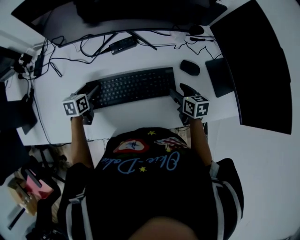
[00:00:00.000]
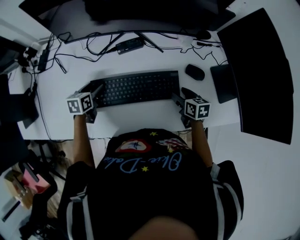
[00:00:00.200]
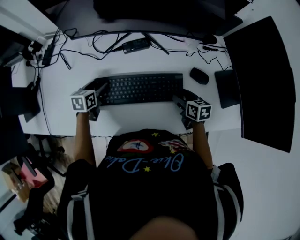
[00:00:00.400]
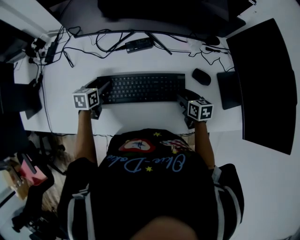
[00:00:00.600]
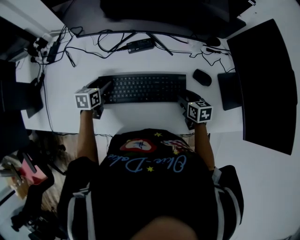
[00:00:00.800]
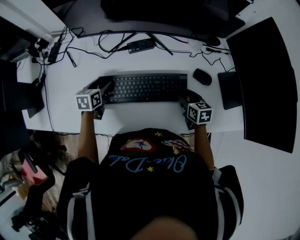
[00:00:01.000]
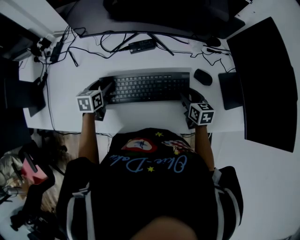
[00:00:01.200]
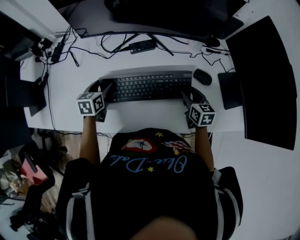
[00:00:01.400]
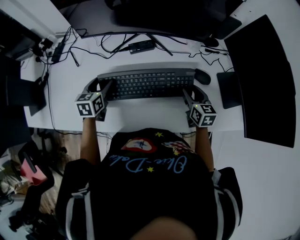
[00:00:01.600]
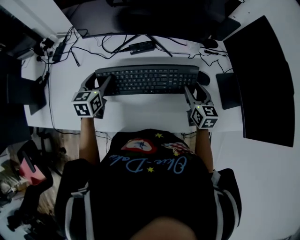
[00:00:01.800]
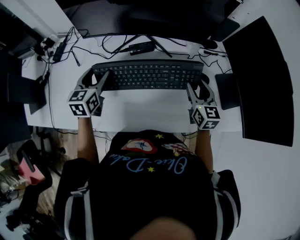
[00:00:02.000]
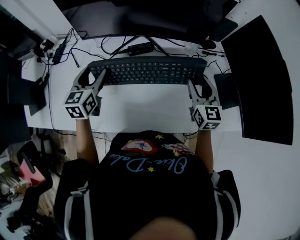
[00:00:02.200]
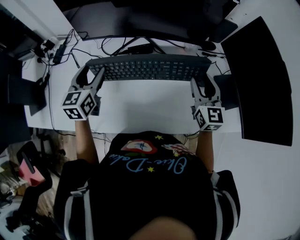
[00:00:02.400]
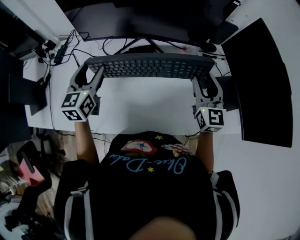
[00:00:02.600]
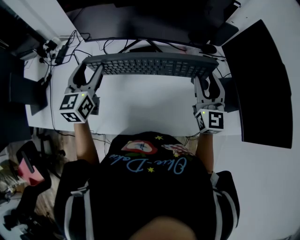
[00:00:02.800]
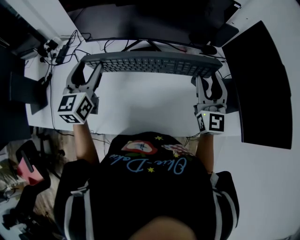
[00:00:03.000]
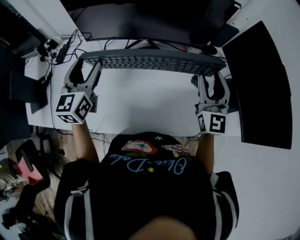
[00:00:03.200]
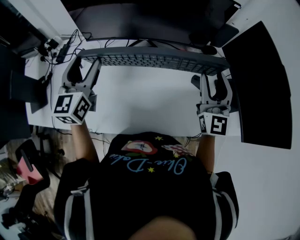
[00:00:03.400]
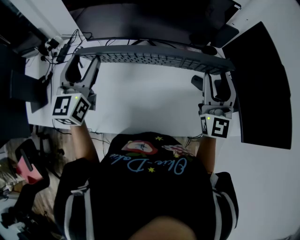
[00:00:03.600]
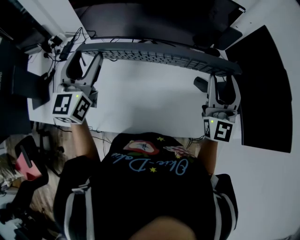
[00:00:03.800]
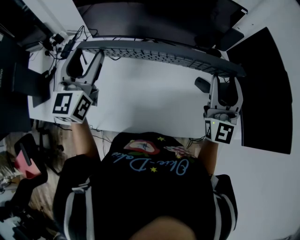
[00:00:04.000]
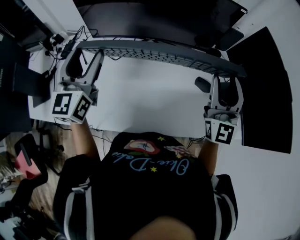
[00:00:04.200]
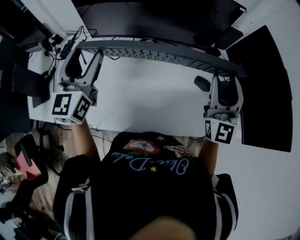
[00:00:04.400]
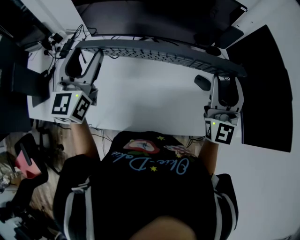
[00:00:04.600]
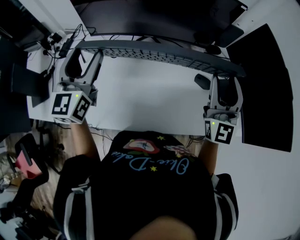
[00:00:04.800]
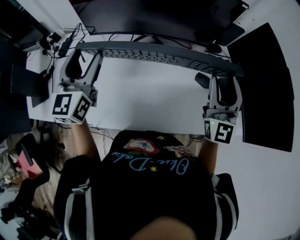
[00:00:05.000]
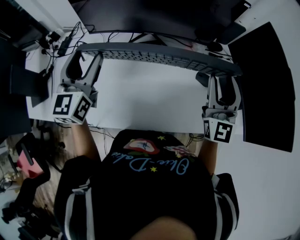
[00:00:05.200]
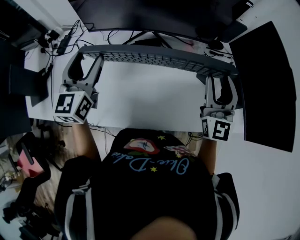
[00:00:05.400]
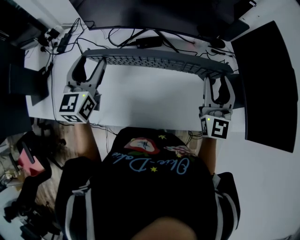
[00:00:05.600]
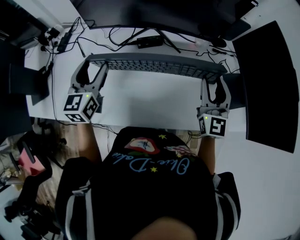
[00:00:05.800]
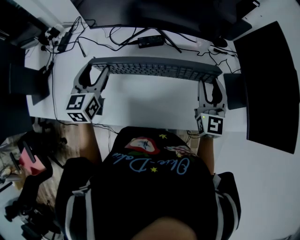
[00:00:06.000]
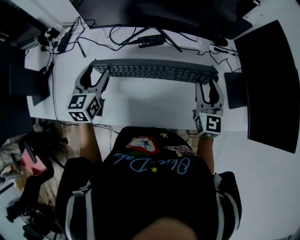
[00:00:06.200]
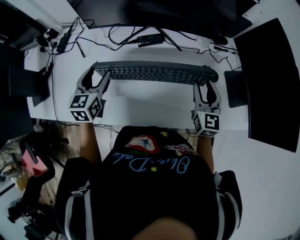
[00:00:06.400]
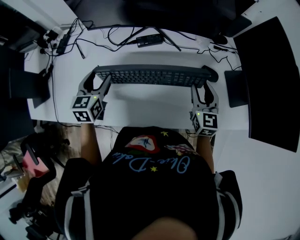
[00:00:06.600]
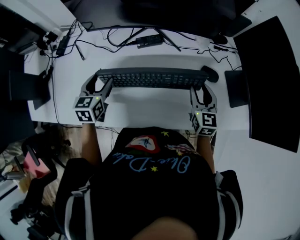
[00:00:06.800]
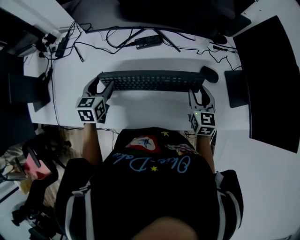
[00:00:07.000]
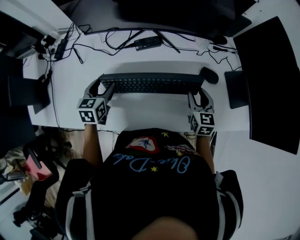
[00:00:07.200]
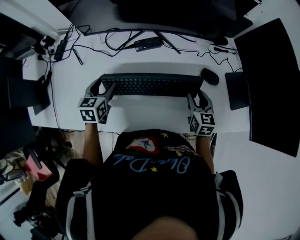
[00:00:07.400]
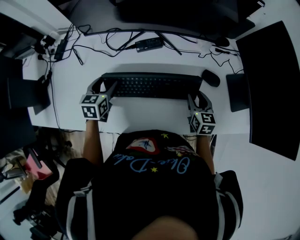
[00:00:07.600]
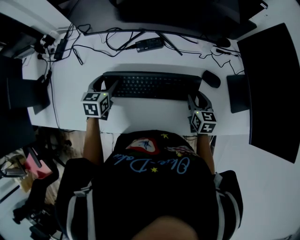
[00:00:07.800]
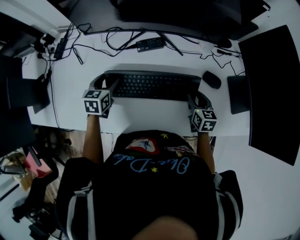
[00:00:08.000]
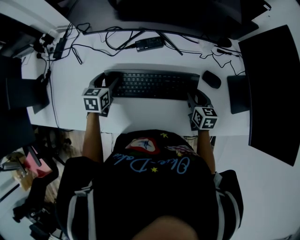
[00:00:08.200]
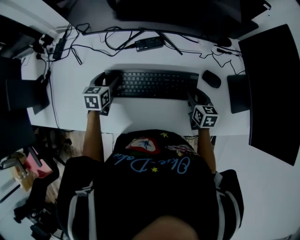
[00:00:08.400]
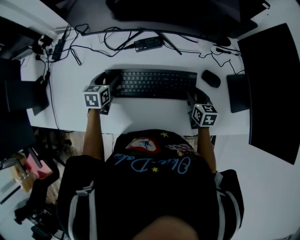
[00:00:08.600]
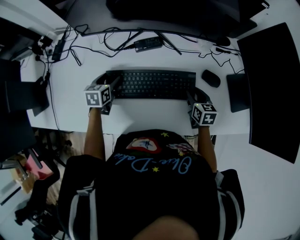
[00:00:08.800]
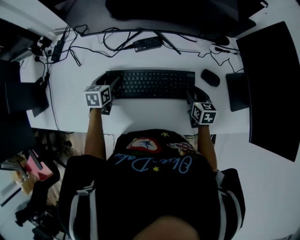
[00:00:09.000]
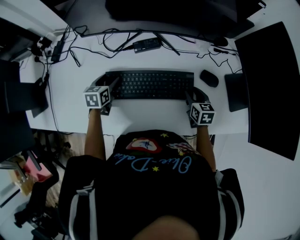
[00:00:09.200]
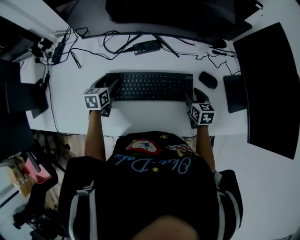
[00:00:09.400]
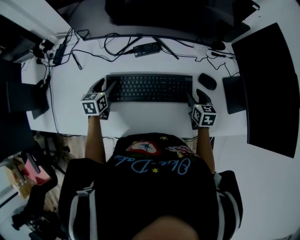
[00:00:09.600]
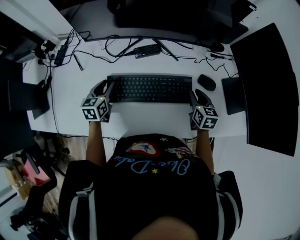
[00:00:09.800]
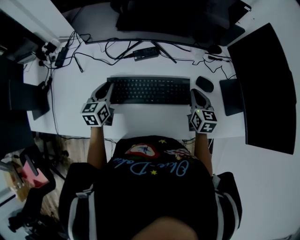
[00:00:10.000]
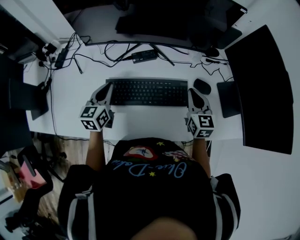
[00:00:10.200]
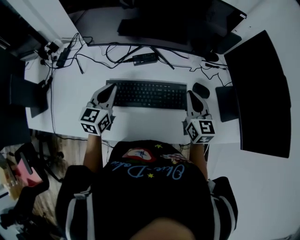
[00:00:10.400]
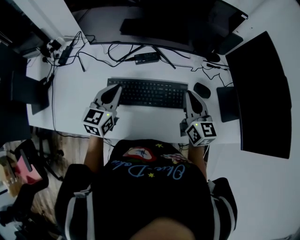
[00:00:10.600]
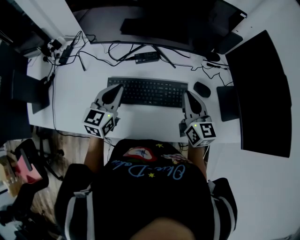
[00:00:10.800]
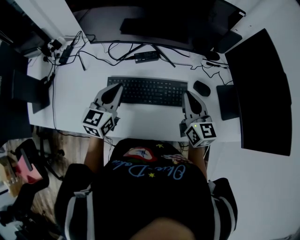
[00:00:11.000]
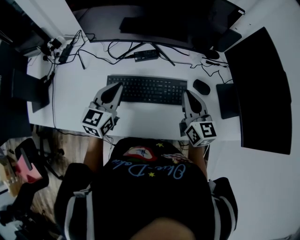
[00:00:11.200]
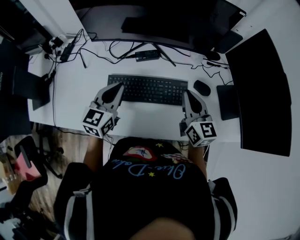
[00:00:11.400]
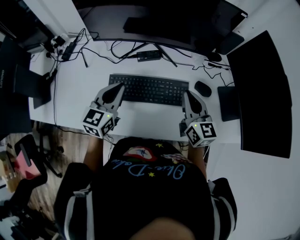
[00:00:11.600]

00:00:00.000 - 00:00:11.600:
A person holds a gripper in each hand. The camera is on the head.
00:00:00.000 - 00:00:01.400: The grippers make only small movements.
00:00:01.400 - 00:00:02.800: Both grippers travel together upward, about 20 cm. The left gripper rotates about 30 degrees. Meanwhile the right gripper tips its fingers upward by roughly 30 degrees.
00:00:02.800 - 00:00:04.400: The grippers both shift upward by roughly 10 cm.
00:00:04.400 - 00:00:05.800: Both grippers move downward, roughly 10 cm.
00:00:05.800 - 00:00:07.200: The grippers both shift downward by approximately 15 cm. The left gripper rotates about 20 degrees, while the right gripper changes its angle by approximately 30 degrees.
00:00:07.200 - 00:00:08.800: The right gripper is displaced downward by some 10 cm, while the left gripper is displaced downward and forward by some 10 cm.
00:00:08.800 - 00:00:10.200: The two grippers go approximately 15 cm upward. The left gripper changes its angle by some 30 degrees, and closes, while the right gripper swivels approximately 30 degrees, and closes up.
00:00:10.200 - 00:00:11.600: The right gripper moves upward, some 5 cm; the left gripper is displaced upward and to the right by some 10 cm.

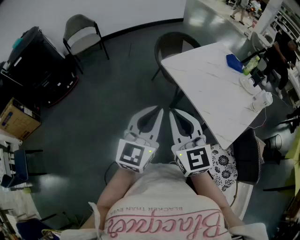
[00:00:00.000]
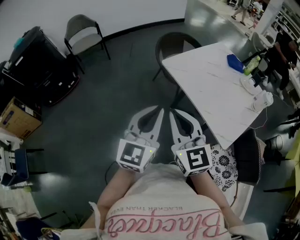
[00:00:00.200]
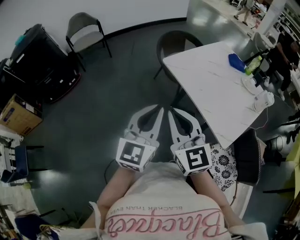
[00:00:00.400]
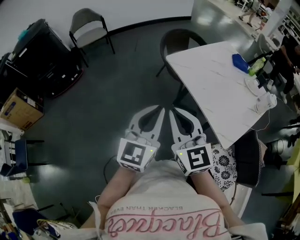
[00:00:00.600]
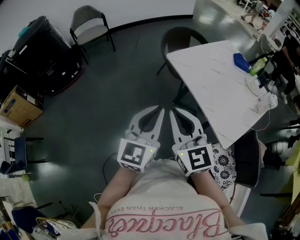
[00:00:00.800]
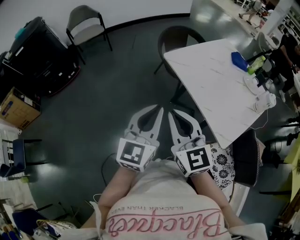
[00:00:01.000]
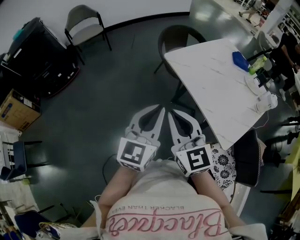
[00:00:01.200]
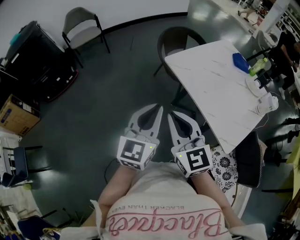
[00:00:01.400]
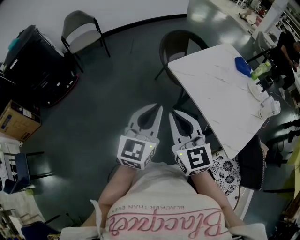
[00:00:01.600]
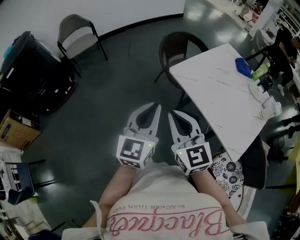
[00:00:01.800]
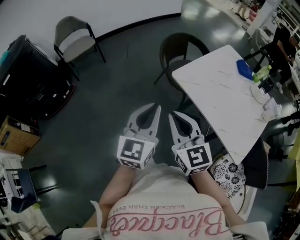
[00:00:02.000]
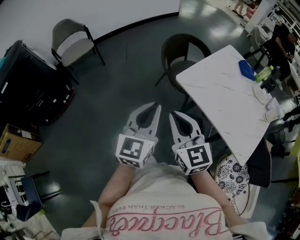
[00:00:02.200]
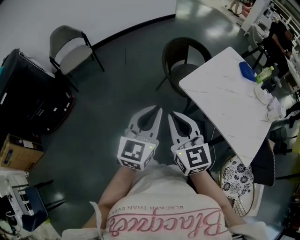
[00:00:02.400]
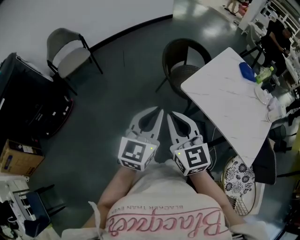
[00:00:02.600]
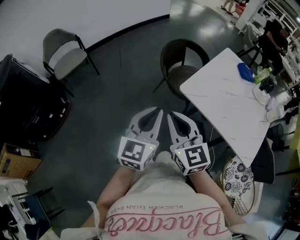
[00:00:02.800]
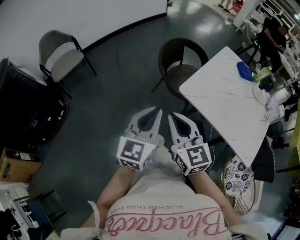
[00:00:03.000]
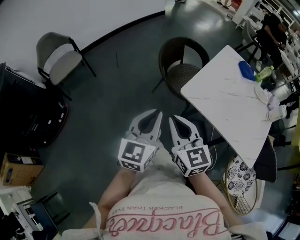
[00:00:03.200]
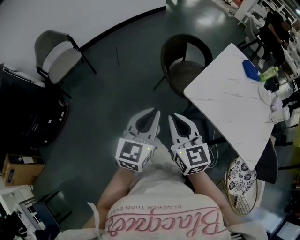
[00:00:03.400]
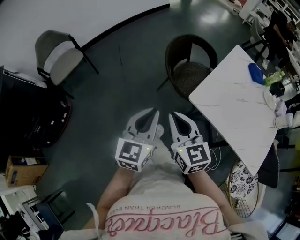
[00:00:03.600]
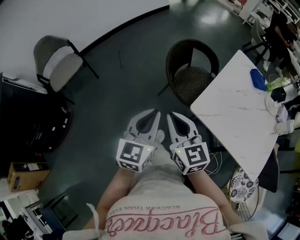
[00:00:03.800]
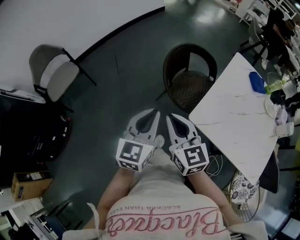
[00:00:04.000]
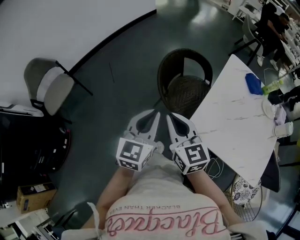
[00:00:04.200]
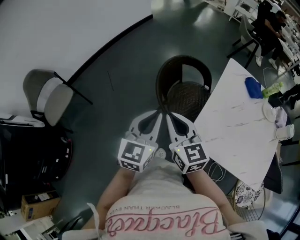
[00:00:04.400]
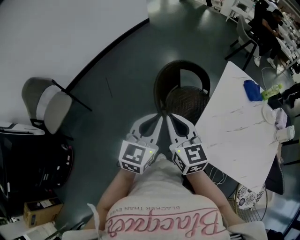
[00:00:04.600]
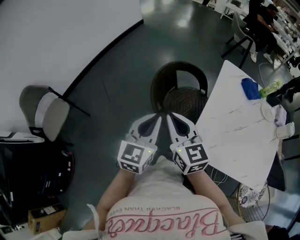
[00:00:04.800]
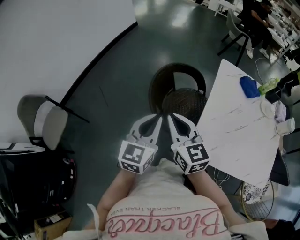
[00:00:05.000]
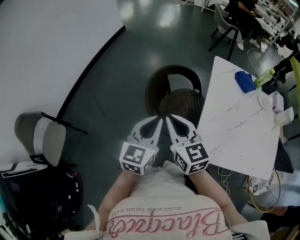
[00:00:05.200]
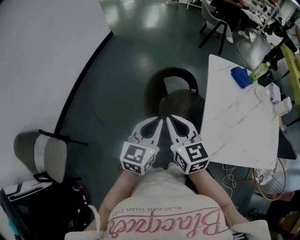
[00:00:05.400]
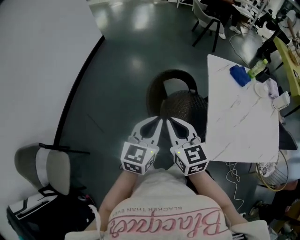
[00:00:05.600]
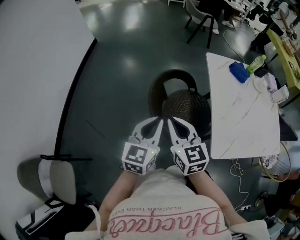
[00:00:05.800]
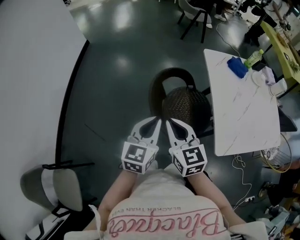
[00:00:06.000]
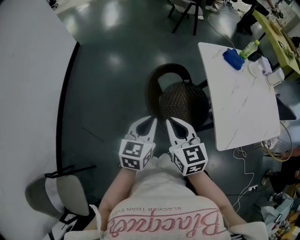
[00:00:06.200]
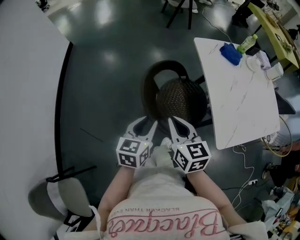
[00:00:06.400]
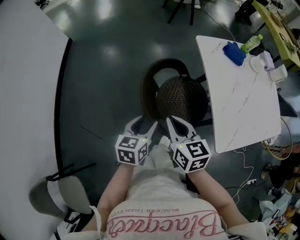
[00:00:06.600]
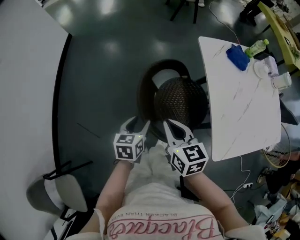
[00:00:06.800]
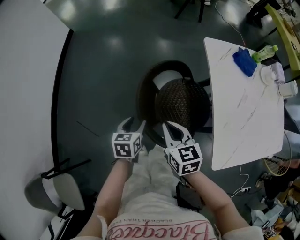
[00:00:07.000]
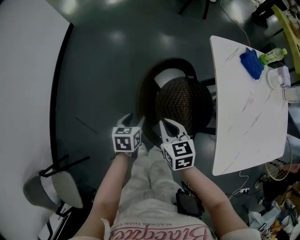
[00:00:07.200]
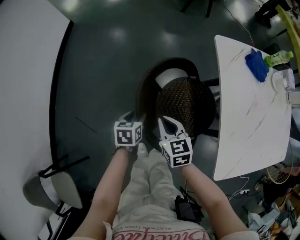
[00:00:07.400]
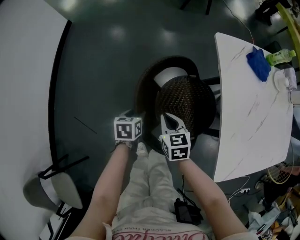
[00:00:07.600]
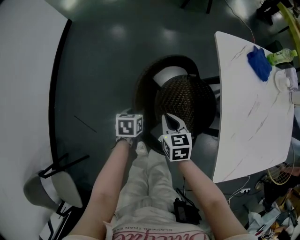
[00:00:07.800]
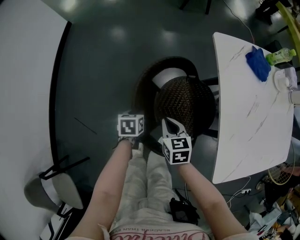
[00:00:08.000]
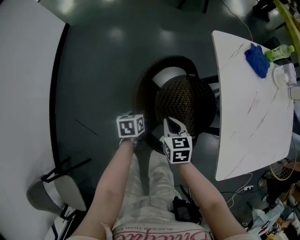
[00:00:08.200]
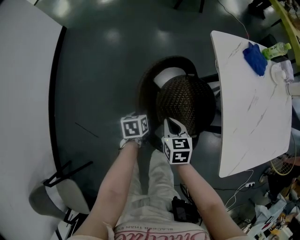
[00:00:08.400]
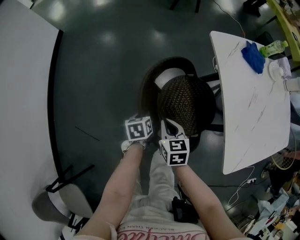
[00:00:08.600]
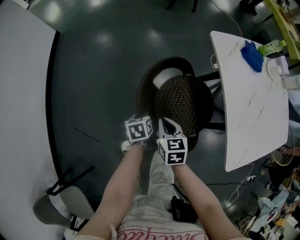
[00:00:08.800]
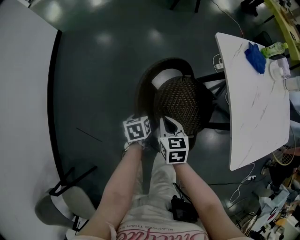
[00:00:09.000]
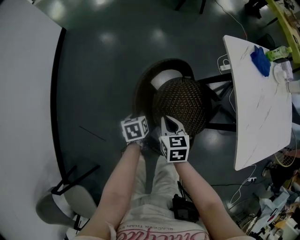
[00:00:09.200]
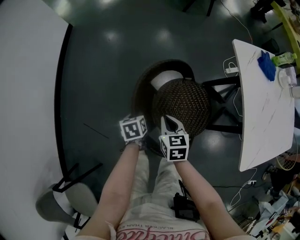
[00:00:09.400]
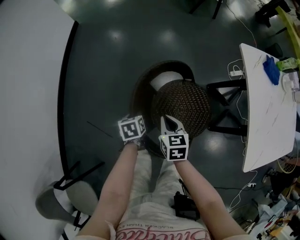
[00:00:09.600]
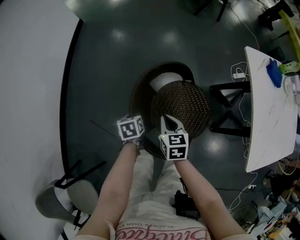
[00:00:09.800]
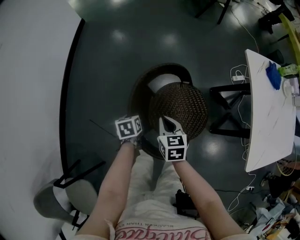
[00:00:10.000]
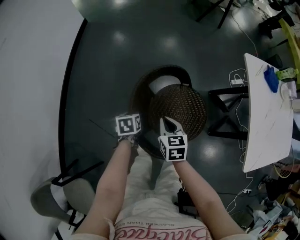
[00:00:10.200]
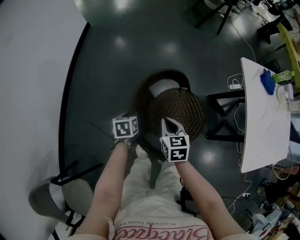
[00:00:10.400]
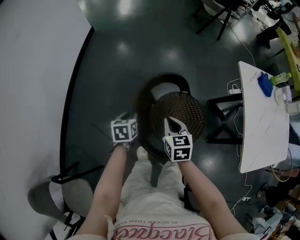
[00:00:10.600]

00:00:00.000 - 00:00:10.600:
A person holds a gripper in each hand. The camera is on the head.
00:00:00.000 - 00:00:01.600: Both grippers move forward, approximately 10 cm.
00:00:01.600 - 00:00:03.000: The grippers both shift forward and to the left by about 25 cm.
00:00:03.000 - 00:00:04.600: The grippers both shift forward by roughly 35 cm.
00:00:04.600 - 00:00:06.000: The left gripper ends up about 25 cm from where it was, and changes its angle by some 30 degrees, while the right gripper changes place by approximately 20 cm, and turns by some 30 degrees.
00:00:06.000 - 00:00:07.600: The two grippers go some 35 cm downward and forward. The right gripper rotates about 20 degrees, while the left gripper points its fingers some 40 degrees further downward, and opens its fingers.
00:00:07.600 - 00:00:09.000: Both grippers travel together to the left, roughly 5 cm. The left gripper closes.
00:00:09.000 - 00:00:10.600: Both grippers move to the left and upward, some 20 cm.

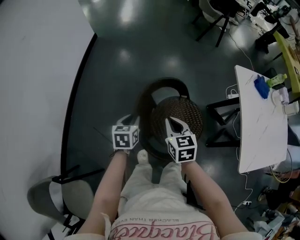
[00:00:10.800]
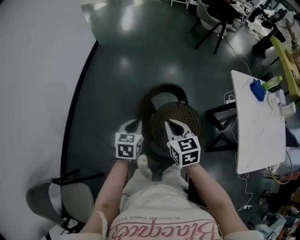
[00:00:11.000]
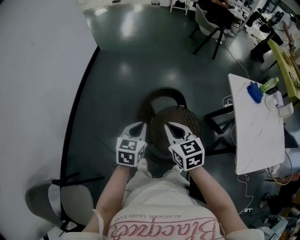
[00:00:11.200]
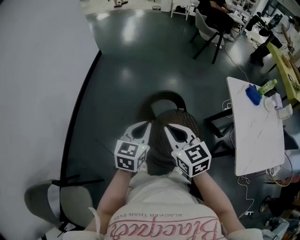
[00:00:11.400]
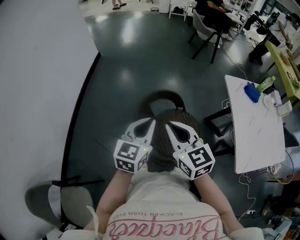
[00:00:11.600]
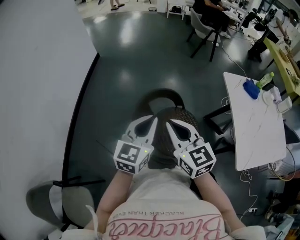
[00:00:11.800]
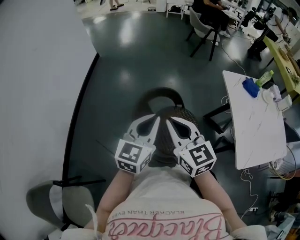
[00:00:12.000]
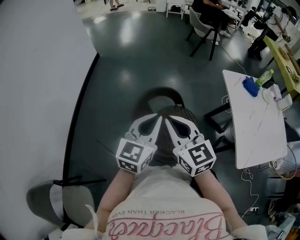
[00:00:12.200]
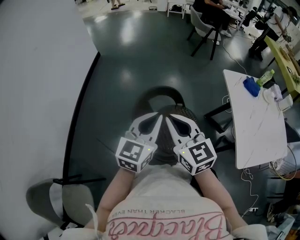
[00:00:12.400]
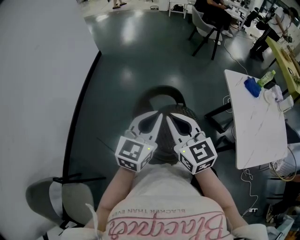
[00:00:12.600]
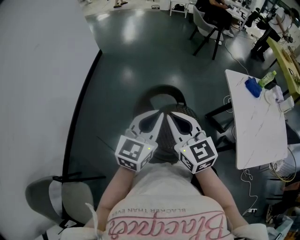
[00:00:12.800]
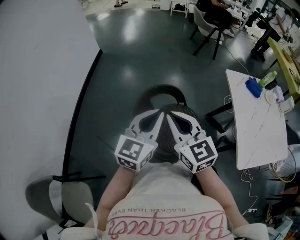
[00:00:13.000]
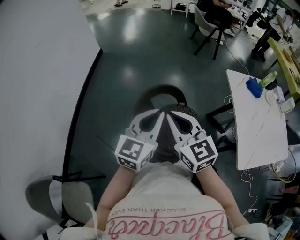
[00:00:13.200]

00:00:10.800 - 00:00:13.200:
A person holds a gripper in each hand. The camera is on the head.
00:00:10.800 - 00:00:12.000: The right gripper goes some 20 cm upward and backward, and turns by approximately 30 degrees. Meanwhile the left gripper travels upward and to the right by some 25 cm, points its fingers roughly 40 degrees further upward, and closes.
00:00:12.000 - 00:00:13.200: The grippers make only small movements.
